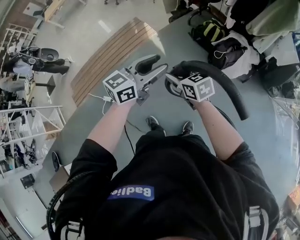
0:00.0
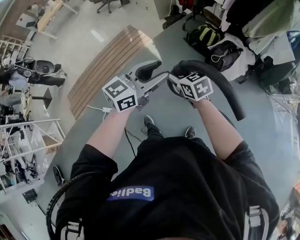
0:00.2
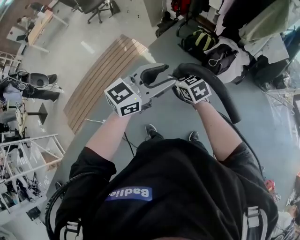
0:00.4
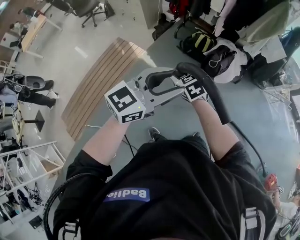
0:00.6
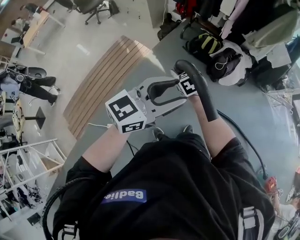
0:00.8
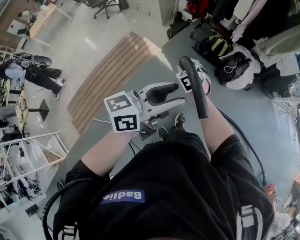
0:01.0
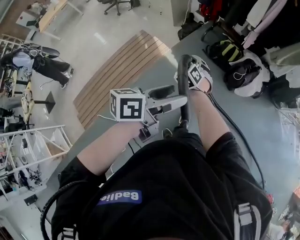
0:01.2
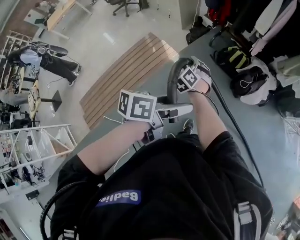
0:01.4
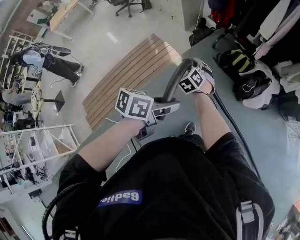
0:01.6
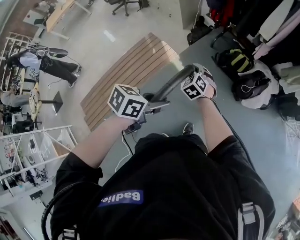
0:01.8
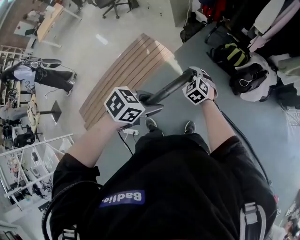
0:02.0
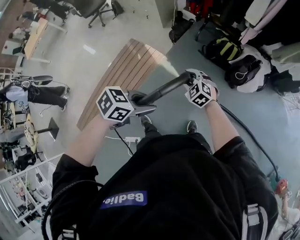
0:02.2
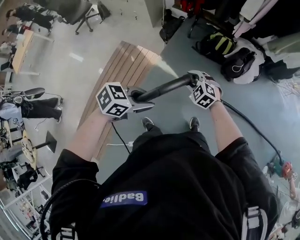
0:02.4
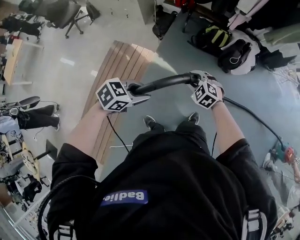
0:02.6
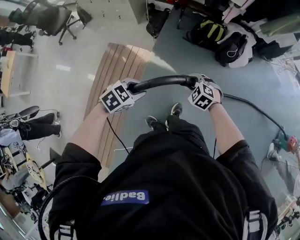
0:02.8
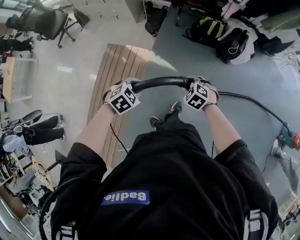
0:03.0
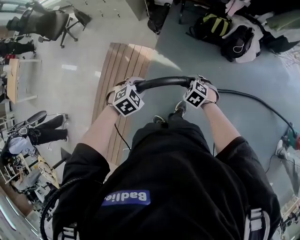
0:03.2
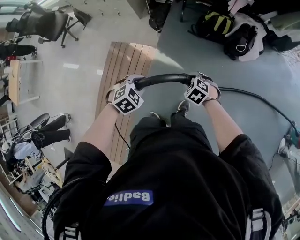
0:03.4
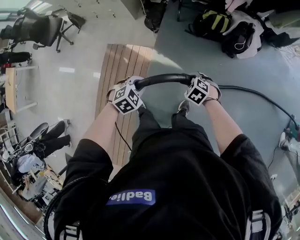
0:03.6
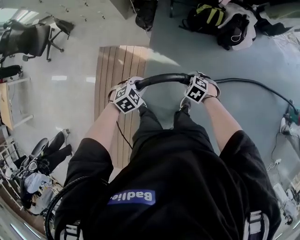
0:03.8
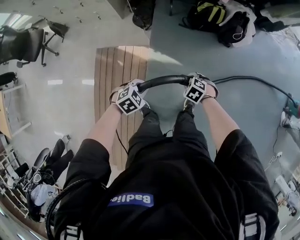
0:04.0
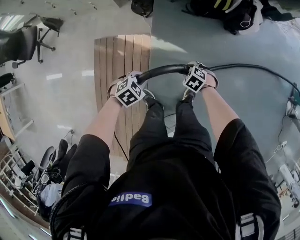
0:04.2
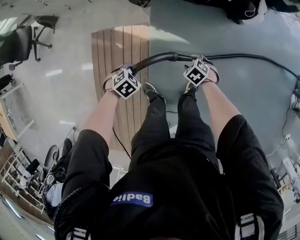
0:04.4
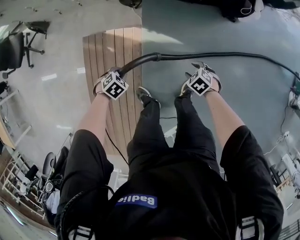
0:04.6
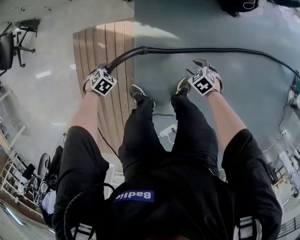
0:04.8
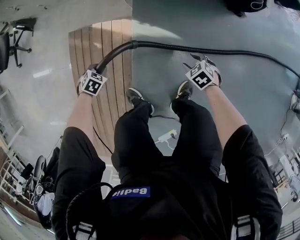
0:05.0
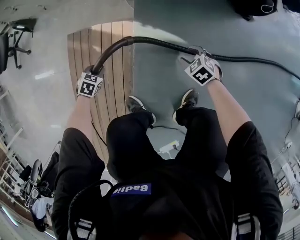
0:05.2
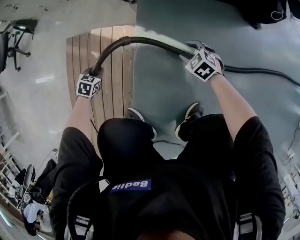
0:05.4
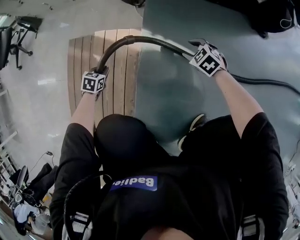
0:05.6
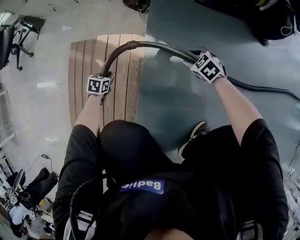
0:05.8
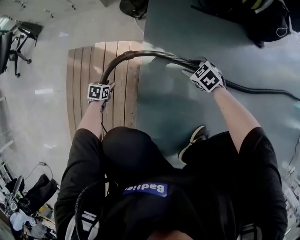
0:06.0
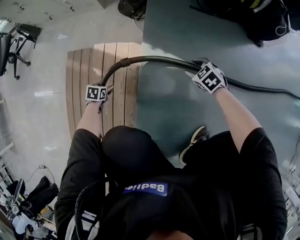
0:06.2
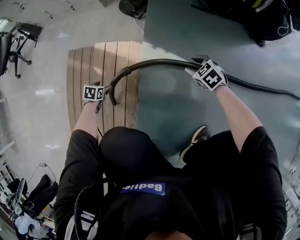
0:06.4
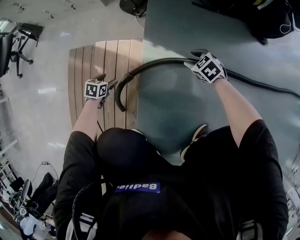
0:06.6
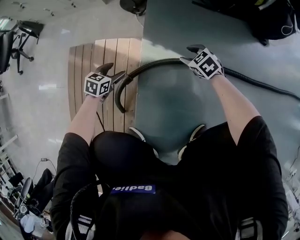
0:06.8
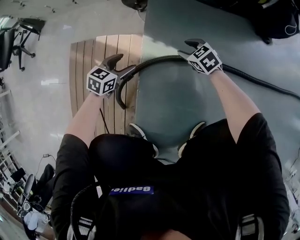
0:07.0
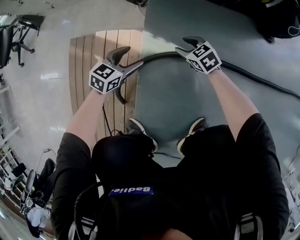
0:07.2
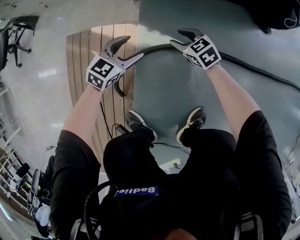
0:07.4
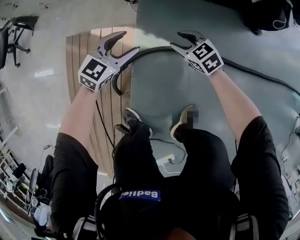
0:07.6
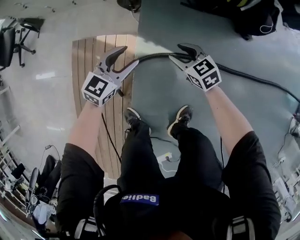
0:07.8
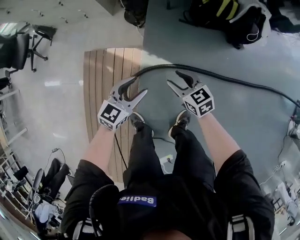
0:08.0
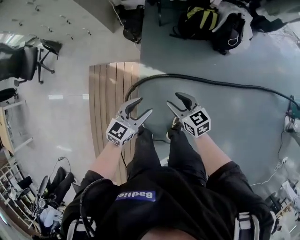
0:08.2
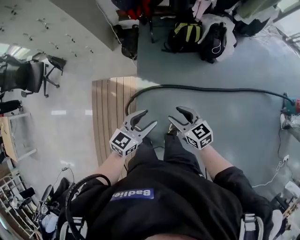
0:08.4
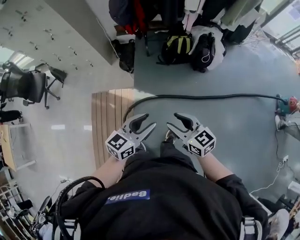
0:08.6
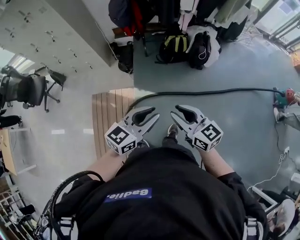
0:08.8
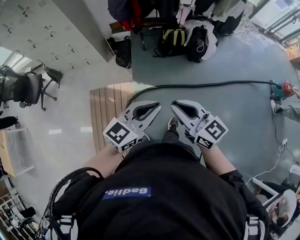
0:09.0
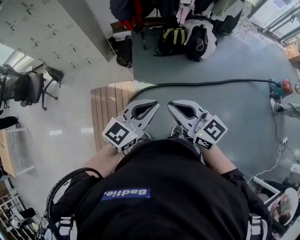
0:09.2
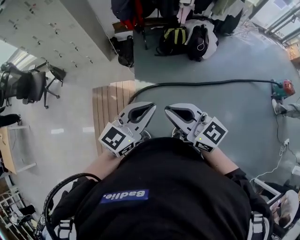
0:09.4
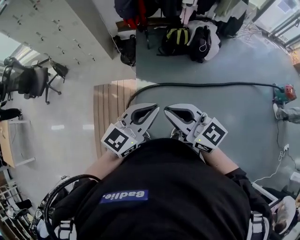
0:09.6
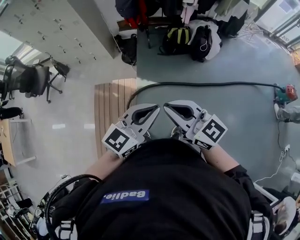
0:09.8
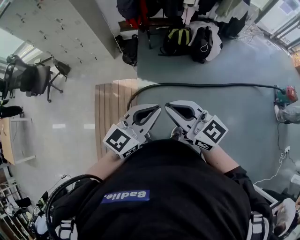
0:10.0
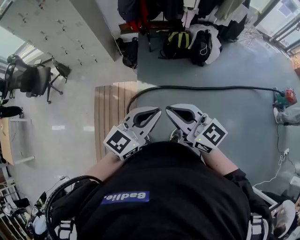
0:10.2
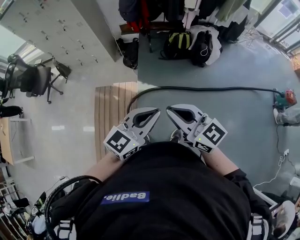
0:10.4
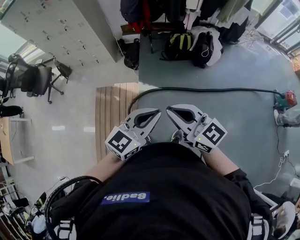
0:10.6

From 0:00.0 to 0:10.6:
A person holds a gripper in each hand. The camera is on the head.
From 0:00.0 to 0:01.6: The left gripper moves about 10 cm upward and comes back, rotates some 50 degrees, and opens, then closes again. The right gripper ends up roughly 40 cm from where it was, and swivels roughly 50 degrees.
From 0:01.6 to 0:03.0: The right gripper is displaced downward by about 10 cm, and swivels approximately 30 degrees; the left gripper moves about 40 cm, and rotates around the line of its fingers by roughly 70 degrees, clockwise from behind.
From 0:03.0 to 0:04.6: Both grippers move downward, some 30 cm. The right gripper swivels some 30 degrees.
From 0:04.6 to 0:06.0: The grippers both shift downward by some 40 cm. The left gripper twists about 40 degrees counterclockwise, seen from behind.
From 0:06.0 to 0:07.6: The right gripper shifts approximately 15 cm upward and forward, while the left gripper travels upward and to the right by some 40 cm, tips its fingers upward by about 40 degrees, and opens up.
From 0:07.6 to 0:09.0: The two grippers go approximately 80 cm upward and backward. The left gripper rotates about 30 degrees, and closes. The right gripper angles its fingers upward, by some 30 degrees, and closes up.
From 0:09.0 to 0:10.6: Both grippers travel together backward, some 10 cm.

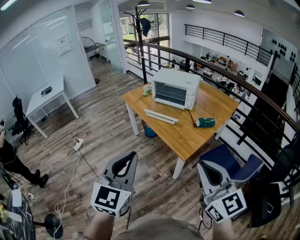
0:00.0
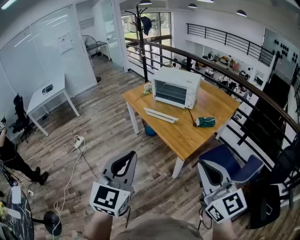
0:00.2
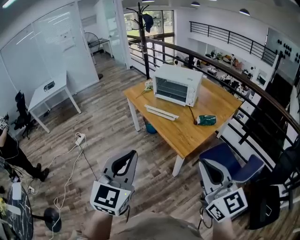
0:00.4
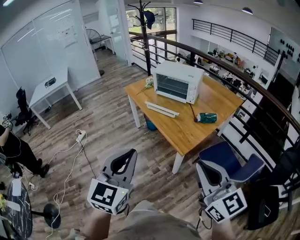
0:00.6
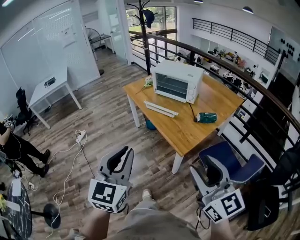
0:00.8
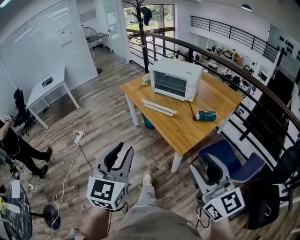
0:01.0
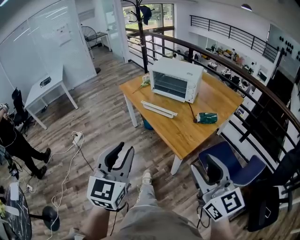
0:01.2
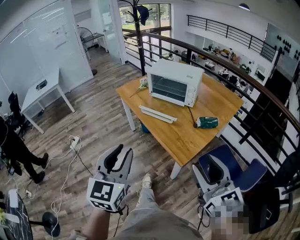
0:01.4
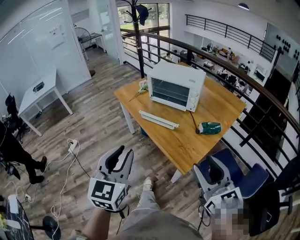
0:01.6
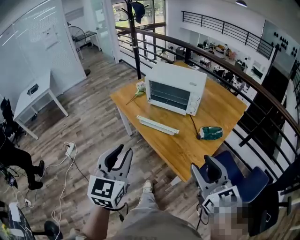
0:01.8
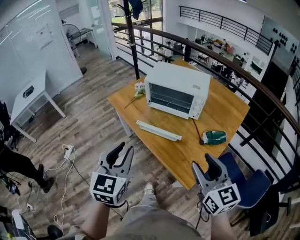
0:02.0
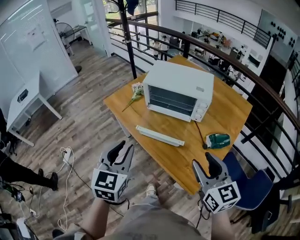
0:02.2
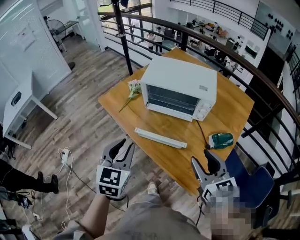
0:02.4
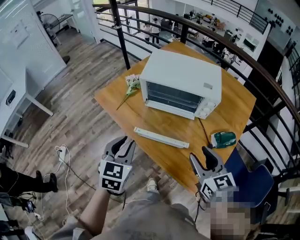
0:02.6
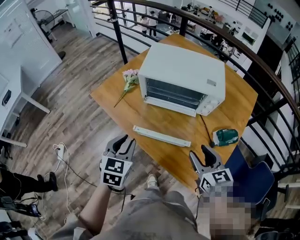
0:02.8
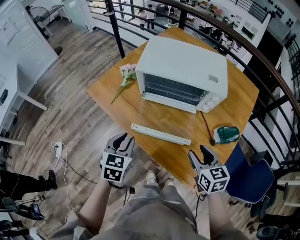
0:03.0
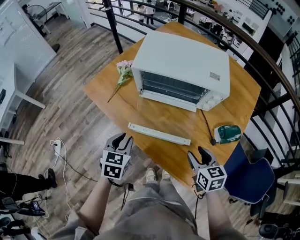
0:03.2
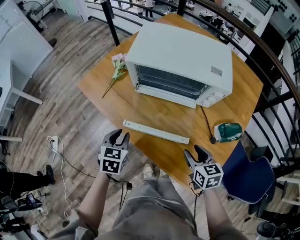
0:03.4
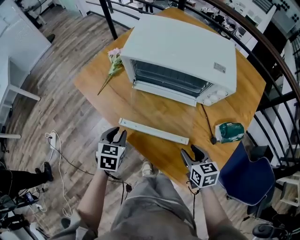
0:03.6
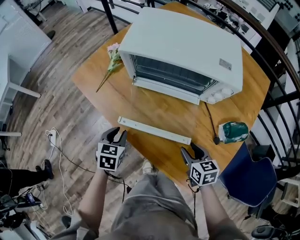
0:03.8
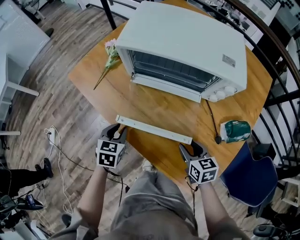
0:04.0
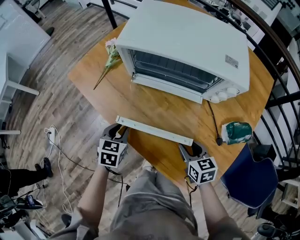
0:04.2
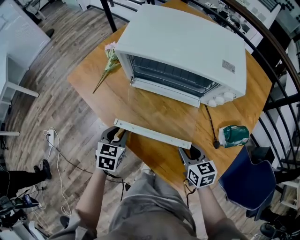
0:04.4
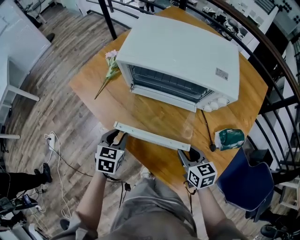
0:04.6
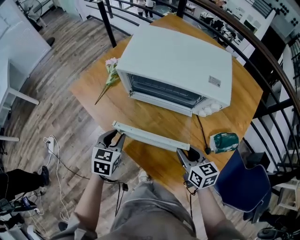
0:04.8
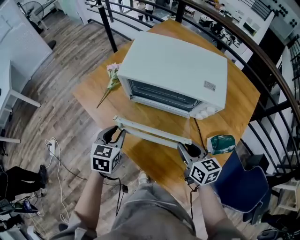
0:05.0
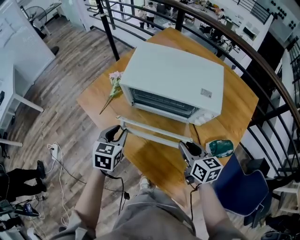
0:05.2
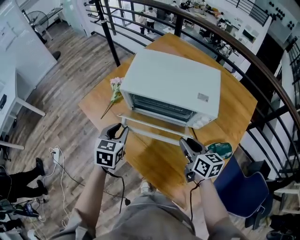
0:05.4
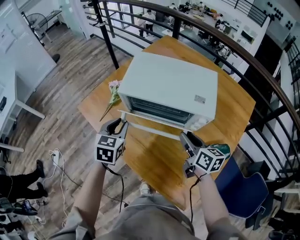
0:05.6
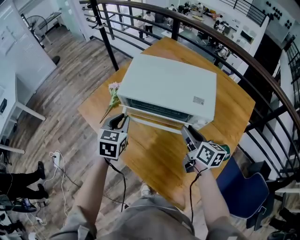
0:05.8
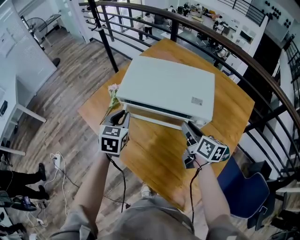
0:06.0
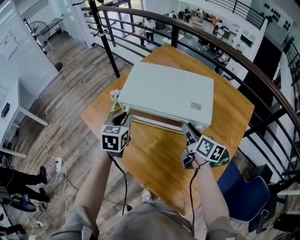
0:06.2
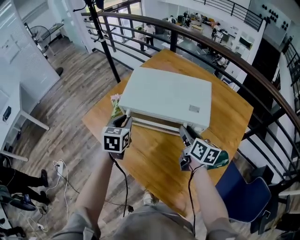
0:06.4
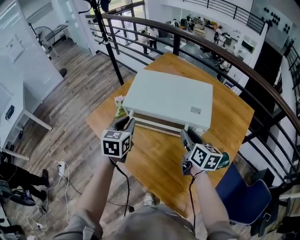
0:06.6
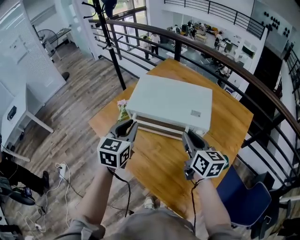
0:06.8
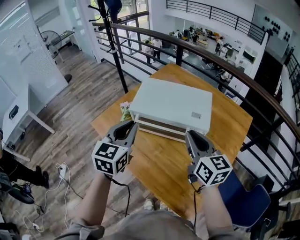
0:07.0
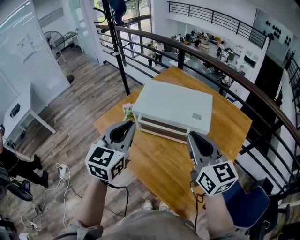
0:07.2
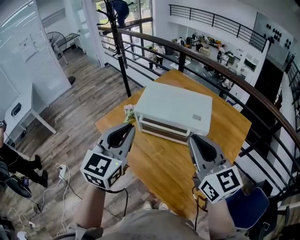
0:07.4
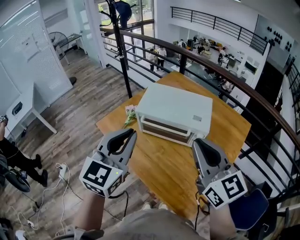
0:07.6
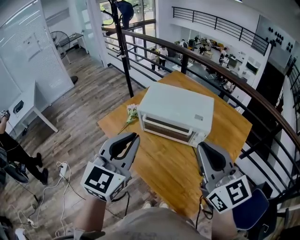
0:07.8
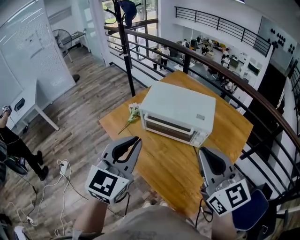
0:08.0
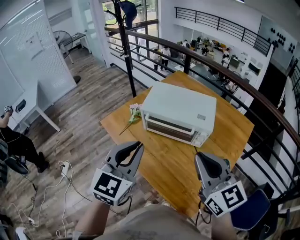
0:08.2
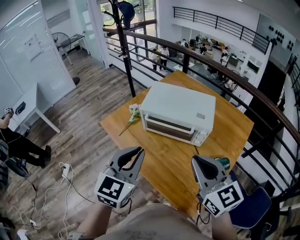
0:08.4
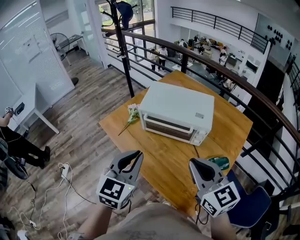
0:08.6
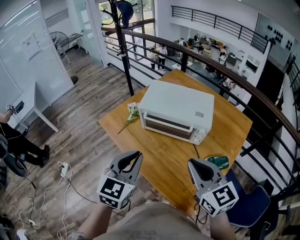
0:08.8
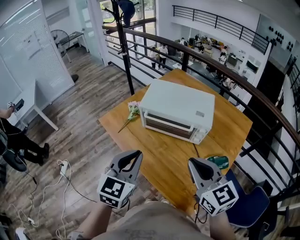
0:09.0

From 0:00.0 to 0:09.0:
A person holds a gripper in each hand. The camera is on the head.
From 0:00.0 to 0:01.6: Both grippers move forward and downward, approximately 15 cm. The left gripper opens its fingers. The right gripper opens.
From 0:01.6 to 0:03.0: The two grippers go some 40 cm forward and downward. The left gripper tips its fingers downward by roughly 30 degrees; the right gripper tilts its fingers some 30 degrees downward.
From 0:03.0 to 0:04.4: The grippers both shift downward by approximately 15 cm.
From 0:04.4 to 0:06.0: The left gripper moves upward and forward, approximately 25 cm. The right gripper travels forward and upward by some 25 cm, and rotates about 40 degrees.
From 0:06.0 to 0:07.6: The two grippers go some 30 cm upward and backward. The right gripper rotates around the line of its fingers by roughly 40 degrees, counterclockwise from behind, and closes up. Meanwhile the left gripper swivels approximately 30 degrees.
From 0:07.6 to 0:09.0: The grippers both shift downward and backward by roughly 10 cm.

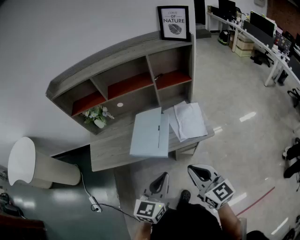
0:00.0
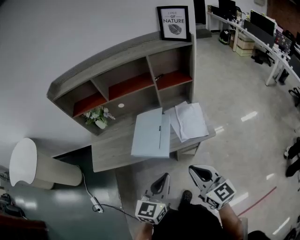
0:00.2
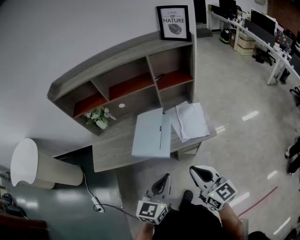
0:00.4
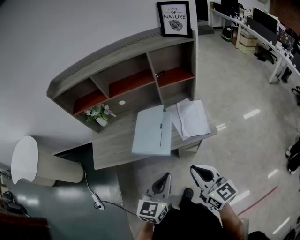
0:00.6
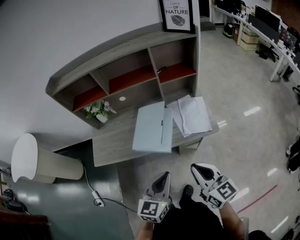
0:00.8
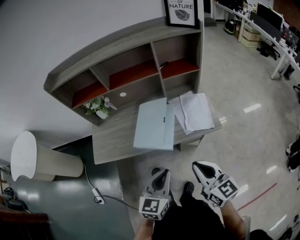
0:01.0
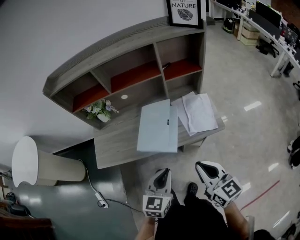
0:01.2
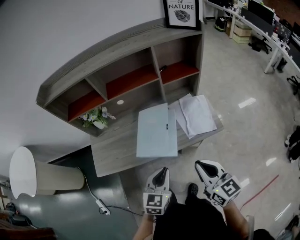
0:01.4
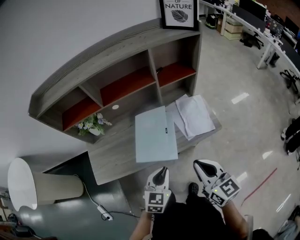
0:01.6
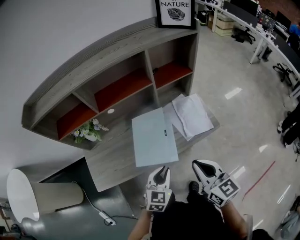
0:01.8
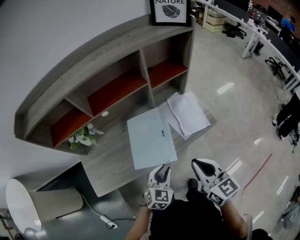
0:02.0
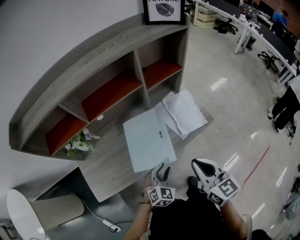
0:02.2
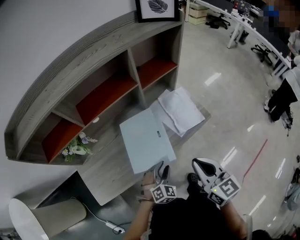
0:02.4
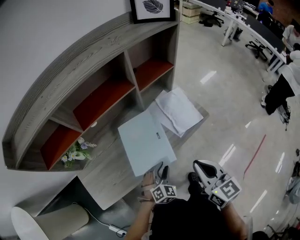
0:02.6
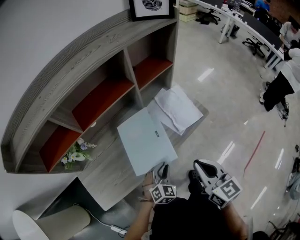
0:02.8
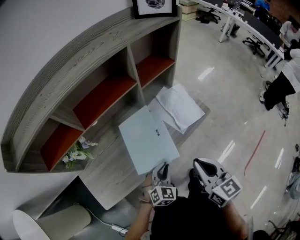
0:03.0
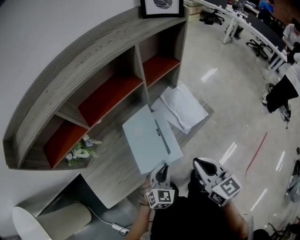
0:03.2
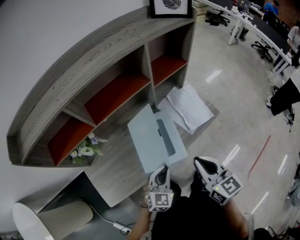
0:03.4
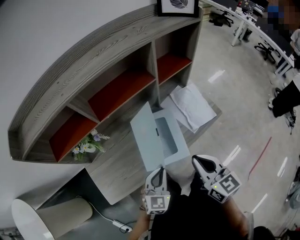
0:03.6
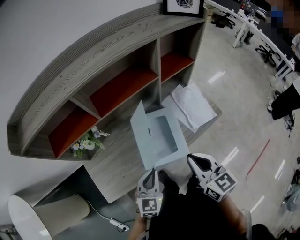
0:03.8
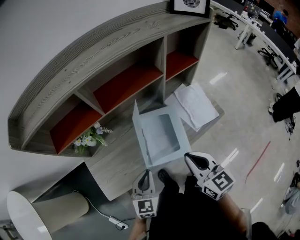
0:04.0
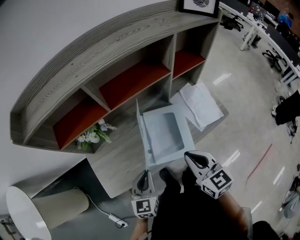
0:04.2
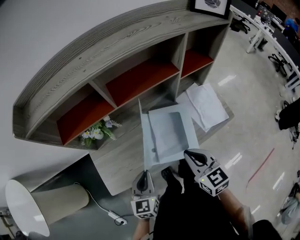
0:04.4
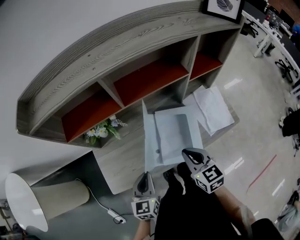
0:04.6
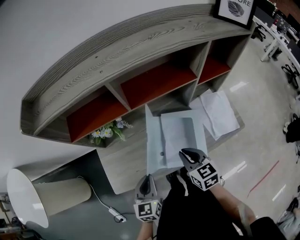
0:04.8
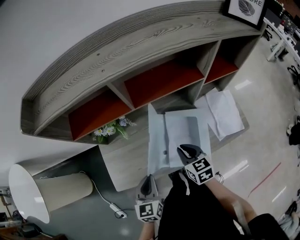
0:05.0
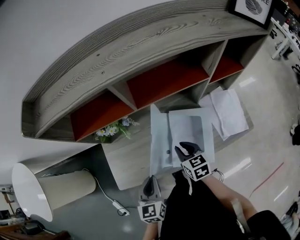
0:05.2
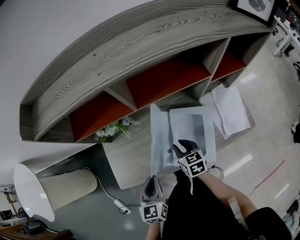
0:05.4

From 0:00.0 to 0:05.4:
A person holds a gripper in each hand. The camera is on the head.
From 0:00.0 to 0:01.4: The right gripper travels forward by roughly 5 cm. Meanwhile the left gripper is displaced downward, forward and to the left by approximately 15 cm.
From 0:01.4 to 0:02.8: The right gripper travels to the left by about 5 cm, and swivels approximately 30 degrees. The left gripper goes approximately 15 cm downward and forward, and swivels some 40 degrees.
From 0:02.8 to 0:04.0: The left gripper travels to the left and upward by about 20 cm, and rotates roughly 40 degrees. Meanwhile the right gripper travels to the left by roughly 10 cm.
From 0:04.0 to 0:05.4: The right gripper goes some 25 cm downward, forward and to the left, and rotates roughly 30 degrees, while the left gripper shifts roughly 10 cm to the left, and swivels approximately 30 degrees.
